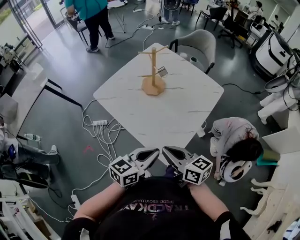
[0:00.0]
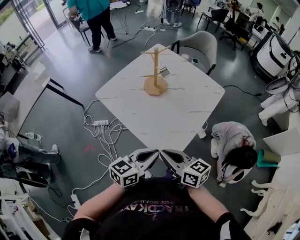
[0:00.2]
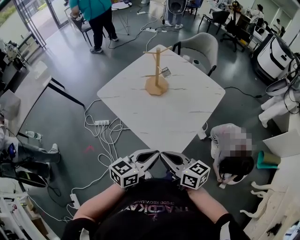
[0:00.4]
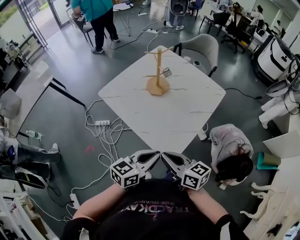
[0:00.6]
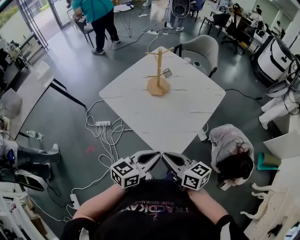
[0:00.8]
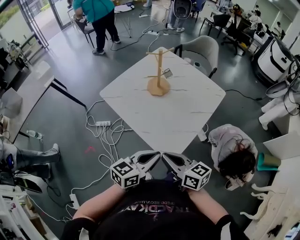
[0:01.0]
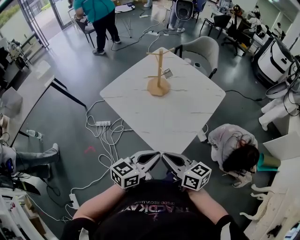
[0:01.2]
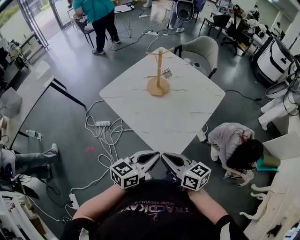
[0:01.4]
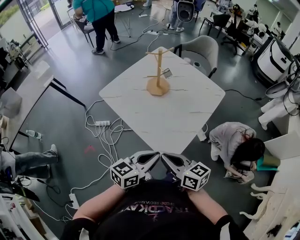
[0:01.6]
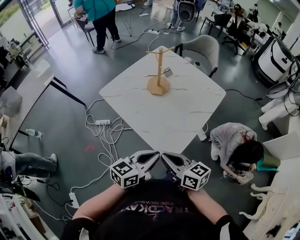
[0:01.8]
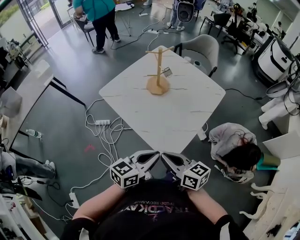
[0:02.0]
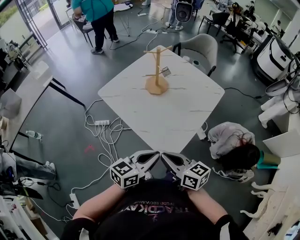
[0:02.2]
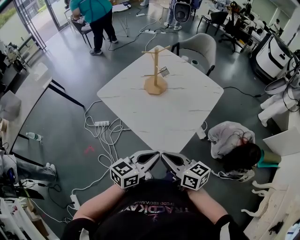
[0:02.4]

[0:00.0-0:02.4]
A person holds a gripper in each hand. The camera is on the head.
0:00.0 to 0:01.2: The right gripper heads backward, covering about 5 cm.
0:01.2 to 0:02.4: The two grippers keep their place.

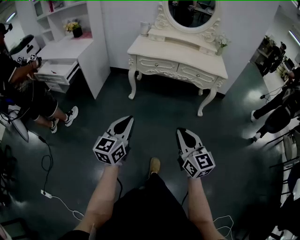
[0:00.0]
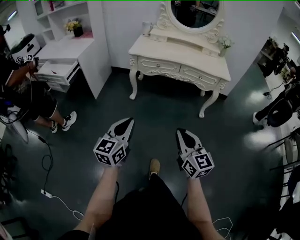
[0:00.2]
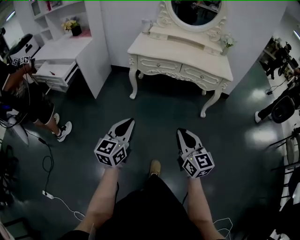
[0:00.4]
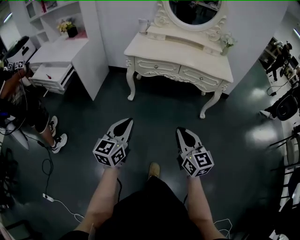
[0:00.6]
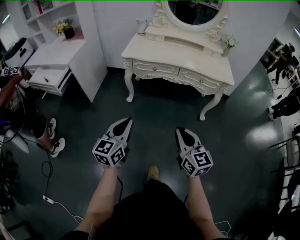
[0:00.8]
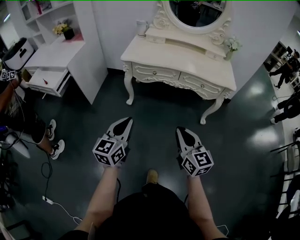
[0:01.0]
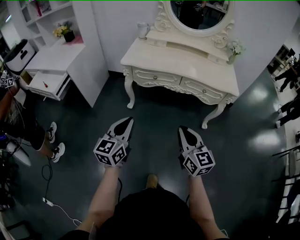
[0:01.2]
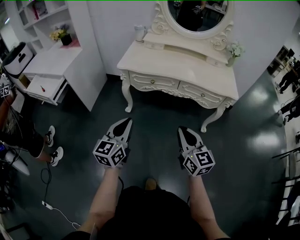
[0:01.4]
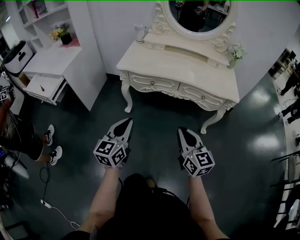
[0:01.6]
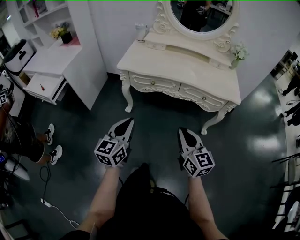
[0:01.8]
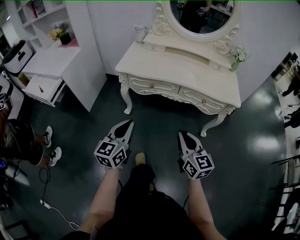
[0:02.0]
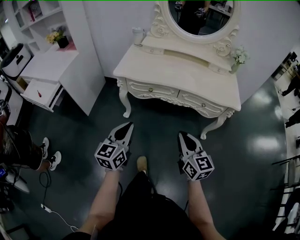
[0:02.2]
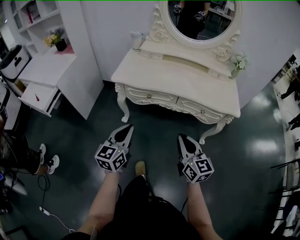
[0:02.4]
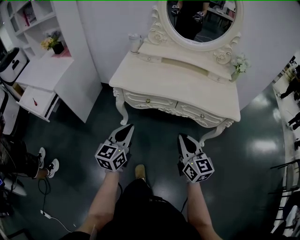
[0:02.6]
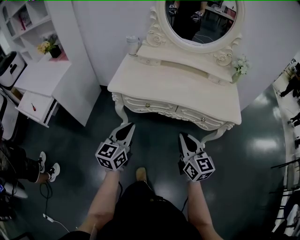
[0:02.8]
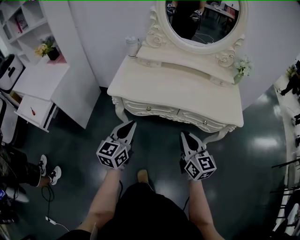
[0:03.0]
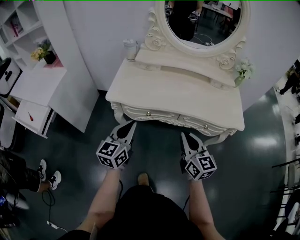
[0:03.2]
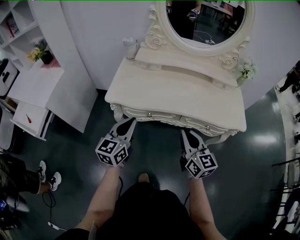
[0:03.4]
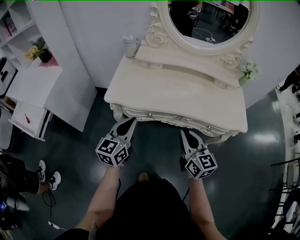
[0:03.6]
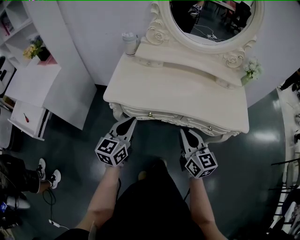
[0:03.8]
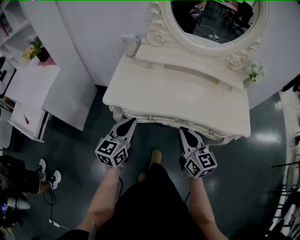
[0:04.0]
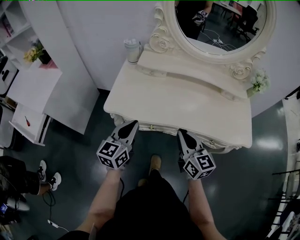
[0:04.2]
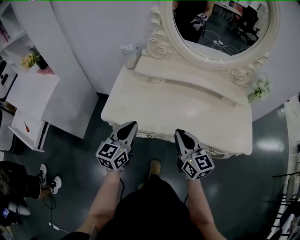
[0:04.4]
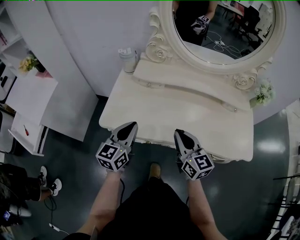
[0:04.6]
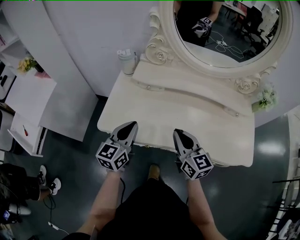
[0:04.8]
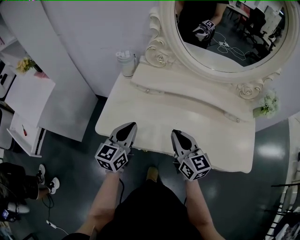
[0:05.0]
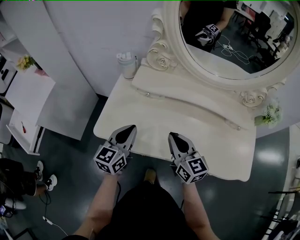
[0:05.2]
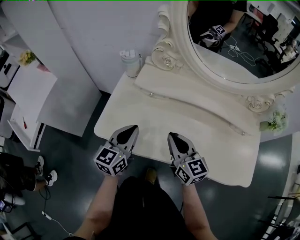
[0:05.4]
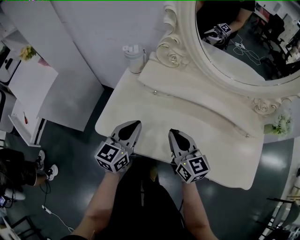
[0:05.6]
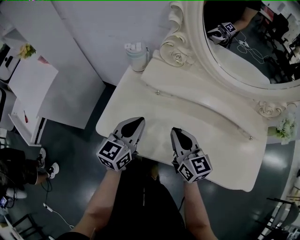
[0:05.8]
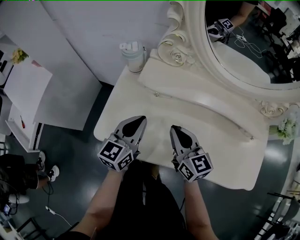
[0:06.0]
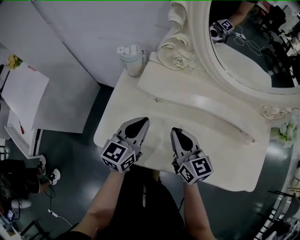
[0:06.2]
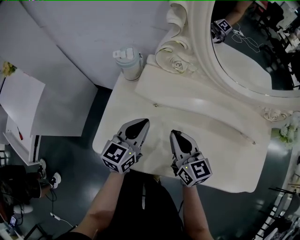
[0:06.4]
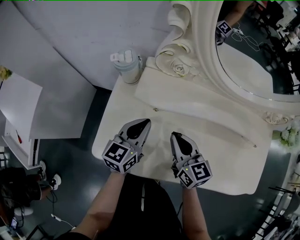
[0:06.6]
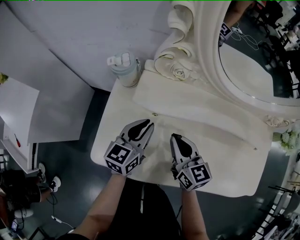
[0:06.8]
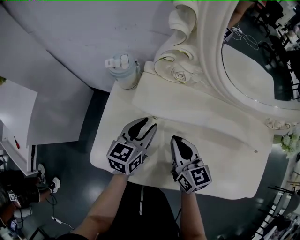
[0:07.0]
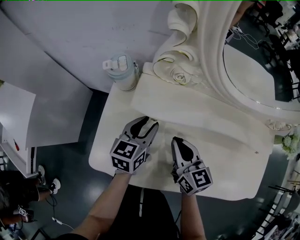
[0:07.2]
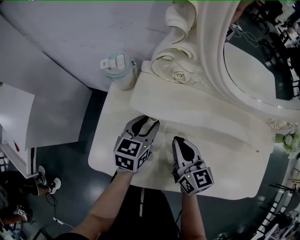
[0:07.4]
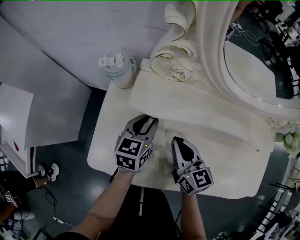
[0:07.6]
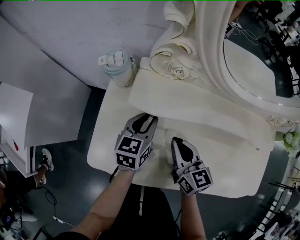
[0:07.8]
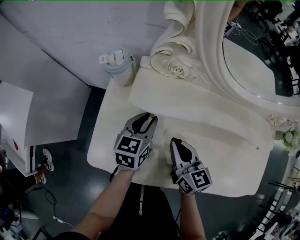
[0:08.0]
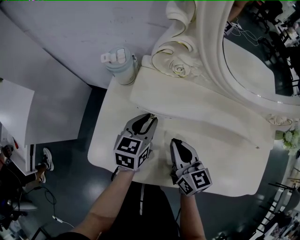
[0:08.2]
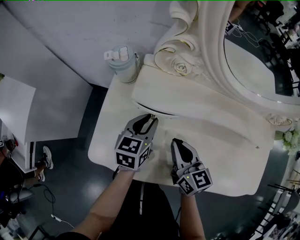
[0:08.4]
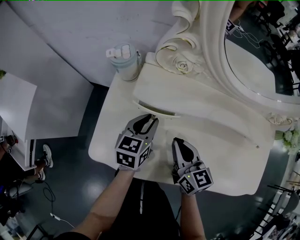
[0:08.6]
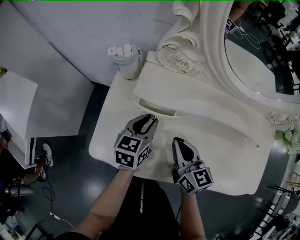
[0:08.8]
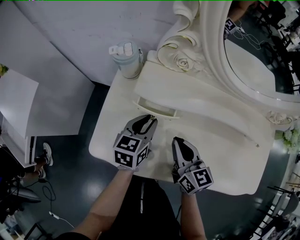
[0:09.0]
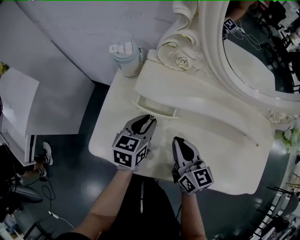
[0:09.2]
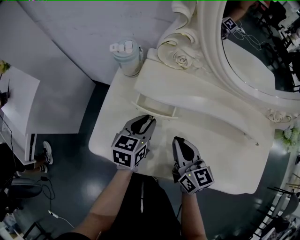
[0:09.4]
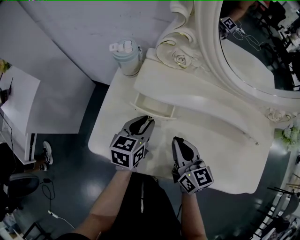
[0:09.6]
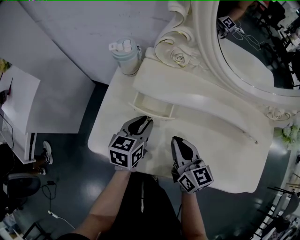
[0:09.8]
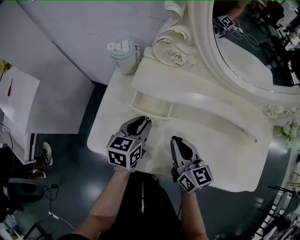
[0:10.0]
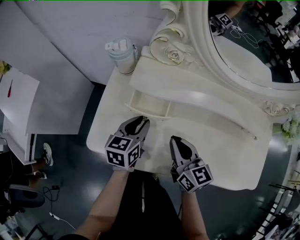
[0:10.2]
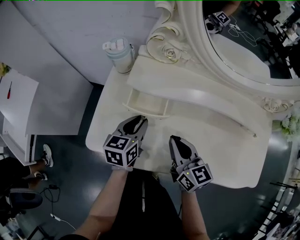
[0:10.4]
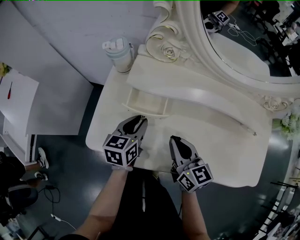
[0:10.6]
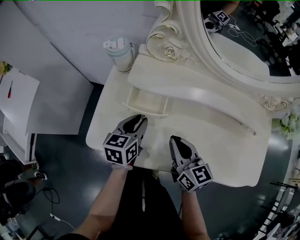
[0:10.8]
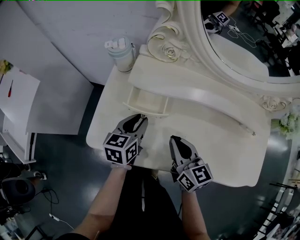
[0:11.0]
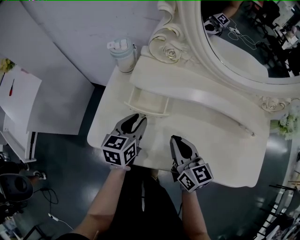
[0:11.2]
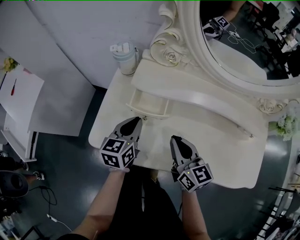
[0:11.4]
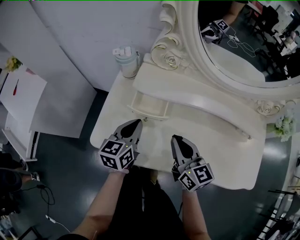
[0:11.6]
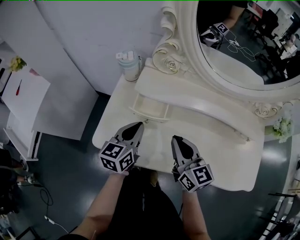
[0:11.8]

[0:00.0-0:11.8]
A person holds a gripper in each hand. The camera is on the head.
0:00.0 to 0:01.4: Both grippers travel together forward, some 30 cm.
0:01.4 to 0:03.0: Both grippers move forward, approximately 25 cm.
0:03.0 to 0:04.4: Both grippers travel together forward, some 20 cm.
0:04.4 to 0:06.0: Both grippers move forward, roughly 20 cm.
0:06.0 to 0:07.4: The right gripper shifts about 10 cm forward and downward. Meanwhile the left gripper moves forward and downward, some 15 cm, and opens up.
0:07.4 to 0:08.8: The grippers move only a little.
0:08.8 to 0:10.4: There are only small adjustments of the grippers.
0:10.4 to 0:11.8: Both grippers travel together upward, about 5 cm. The left gripper closes its fingers.

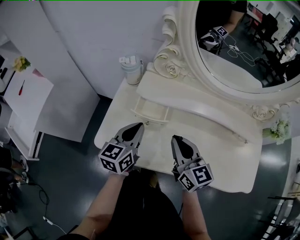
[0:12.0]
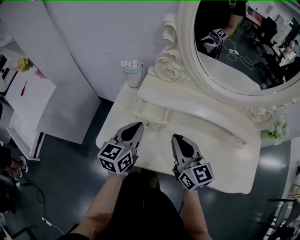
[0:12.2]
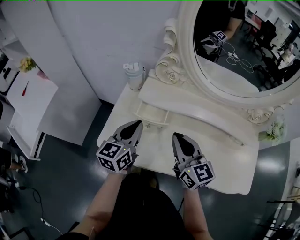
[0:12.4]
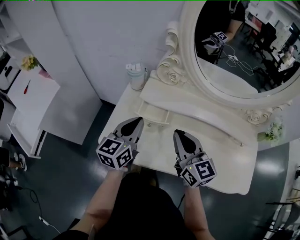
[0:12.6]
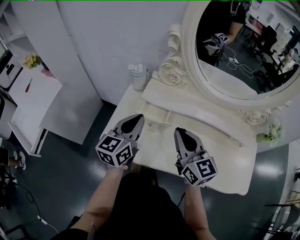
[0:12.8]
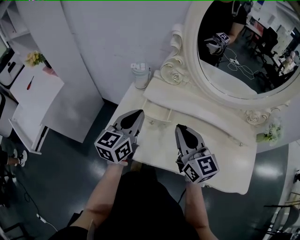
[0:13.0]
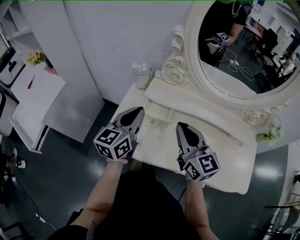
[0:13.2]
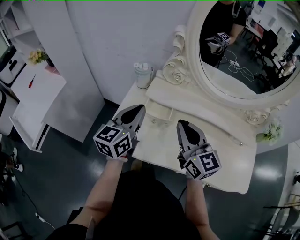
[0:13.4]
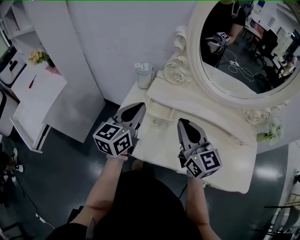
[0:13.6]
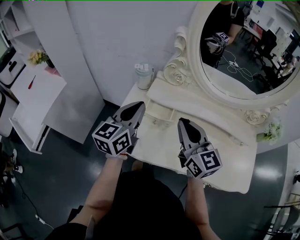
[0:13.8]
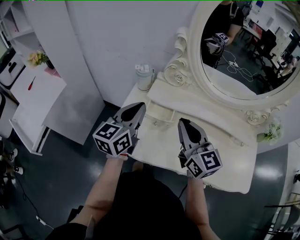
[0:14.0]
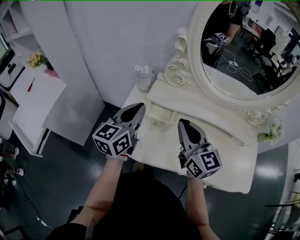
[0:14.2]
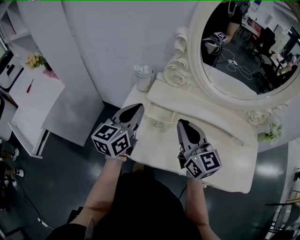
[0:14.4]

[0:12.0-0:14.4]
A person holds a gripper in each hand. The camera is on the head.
0:12.0 to 0:13.2: Both grippers travel together upward, roughly 10 cm.
0:13.2 to 0:14.4: There are only small adjustments of the grippers.

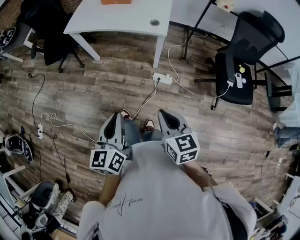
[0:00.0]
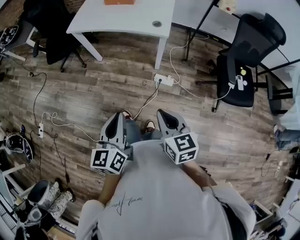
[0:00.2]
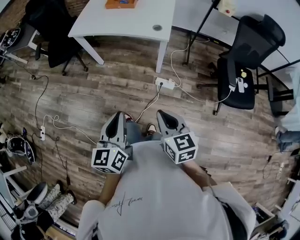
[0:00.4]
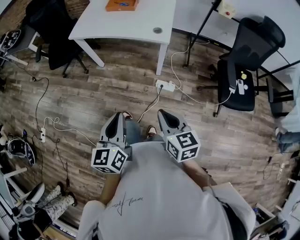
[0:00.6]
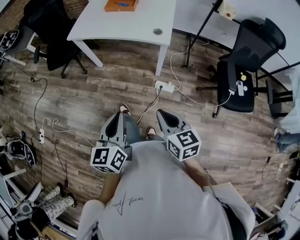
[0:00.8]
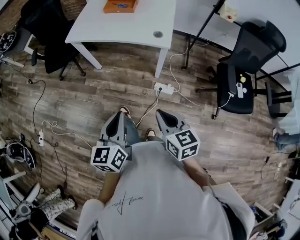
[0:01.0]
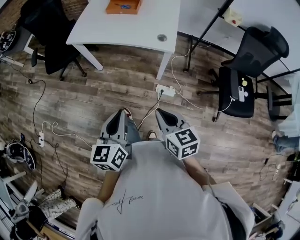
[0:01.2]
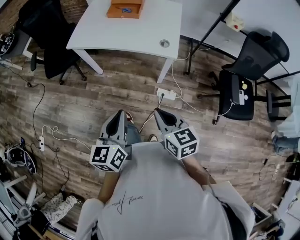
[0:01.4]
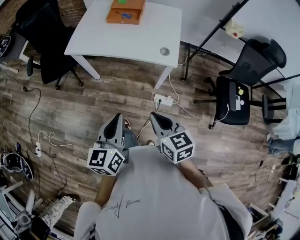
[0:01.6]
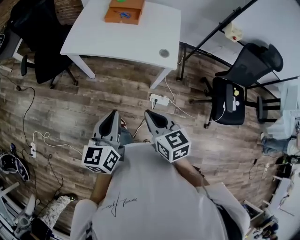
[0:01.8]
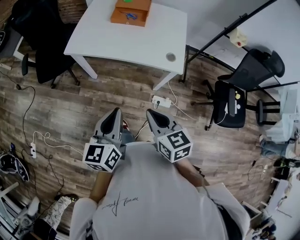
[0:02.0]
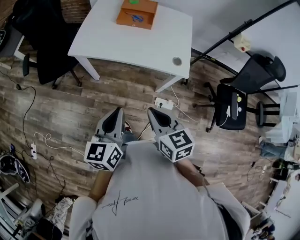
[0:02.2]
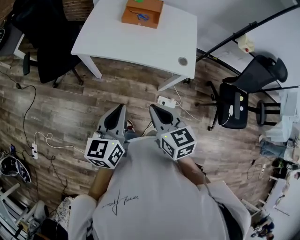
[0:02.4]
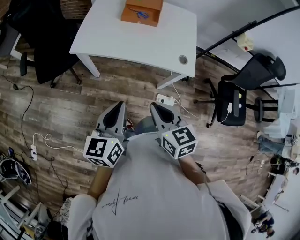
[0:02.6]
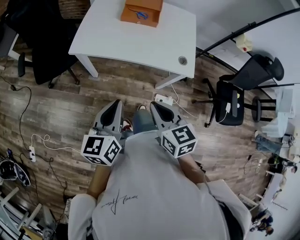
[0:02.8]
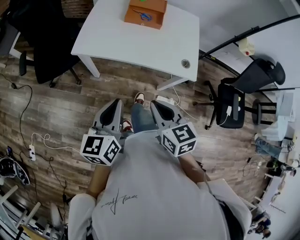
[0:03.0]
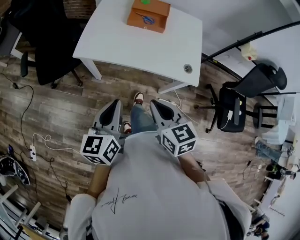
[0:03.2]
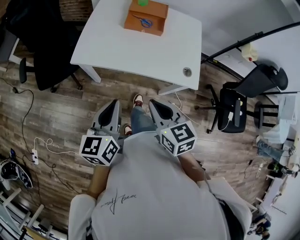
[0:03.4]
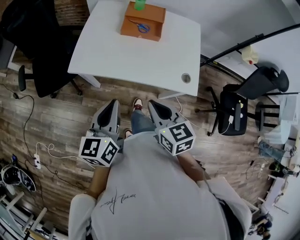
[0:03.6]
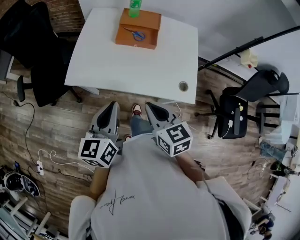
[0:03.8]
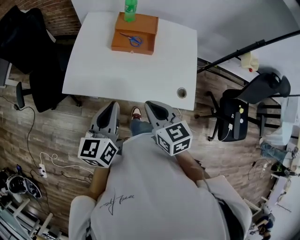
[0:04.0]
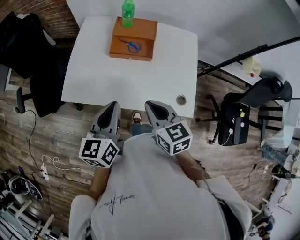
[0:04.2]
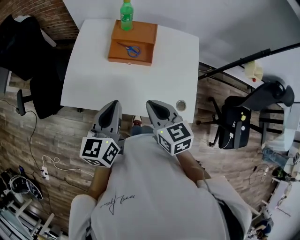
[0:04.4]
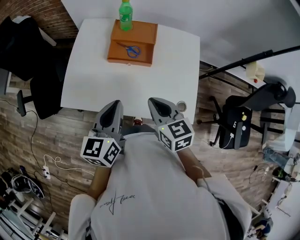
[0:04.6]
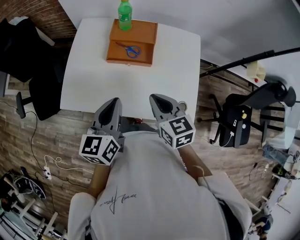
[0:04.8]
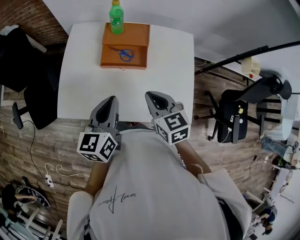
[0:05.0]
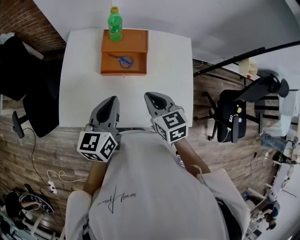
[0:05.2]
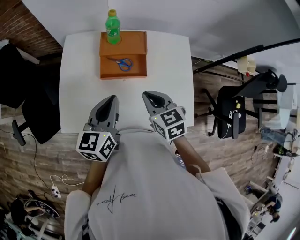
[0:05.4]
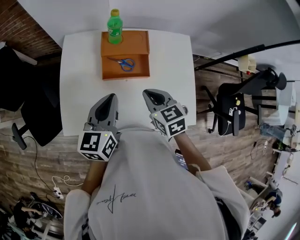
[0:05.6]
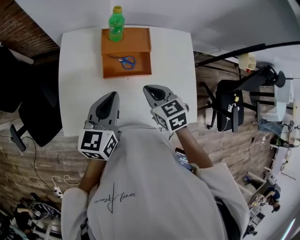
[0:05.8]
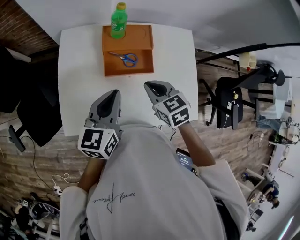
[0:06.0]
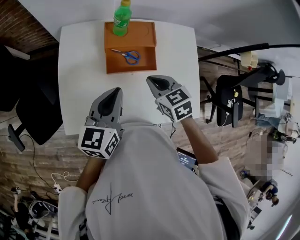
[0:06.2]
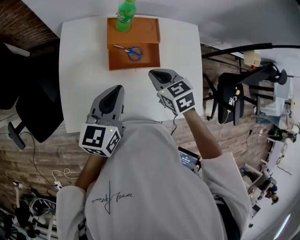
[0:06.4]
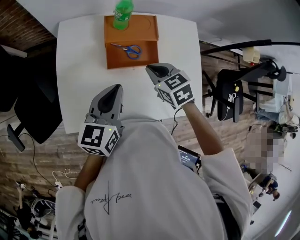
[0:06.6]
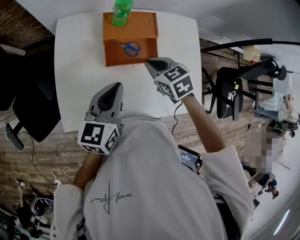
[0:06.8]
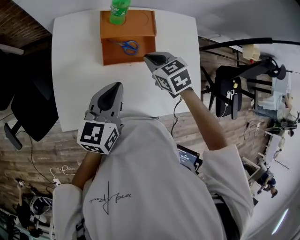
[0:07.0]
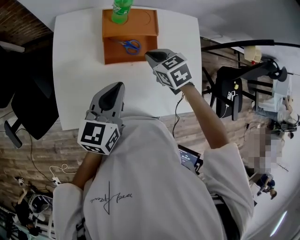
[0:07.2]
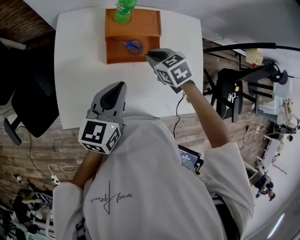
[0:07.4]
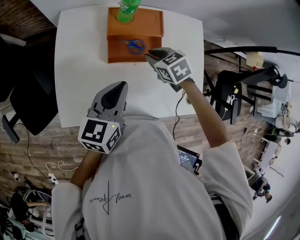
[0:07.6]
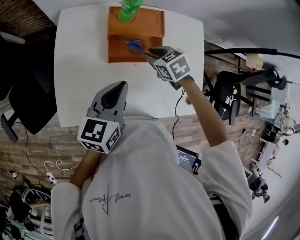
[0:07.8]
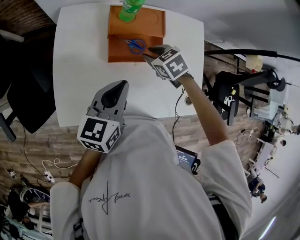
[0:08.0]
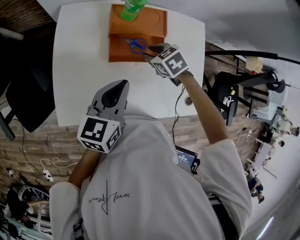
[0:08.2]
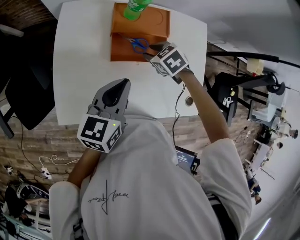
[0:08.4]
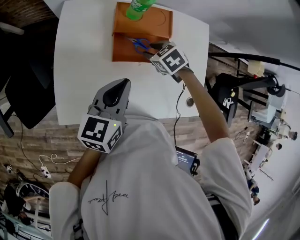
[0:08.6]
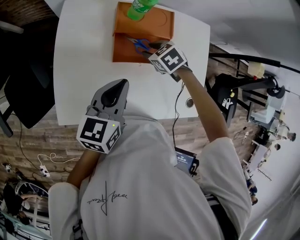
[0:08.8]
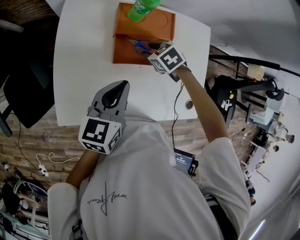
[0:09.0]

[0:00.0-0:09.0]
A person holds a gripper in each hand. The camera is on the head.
0:00.0 to 0:01.6: The left gripper shifts approximately 20 cm forward, while the right gripper is displaced forward and to the left by some 20 cm.
0:01.6 to 0:03.0: The two grippers go about 20 cm forward and to the left.
0:03.0 to 0:04.4: Both grippers travel together forward, about 25 cm.
0:04.4 to 0:06.0: Both grippers travel together forward, approximately 15 cm.
0:06.0 to 0:07.6: The right gripper heads forward and downward, covering some 10 cm.
0:07.6 to 0:09.0: The right gripper shifts about 5 cm downward, and opens its fingers.
